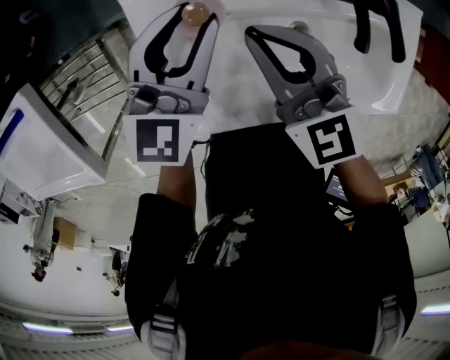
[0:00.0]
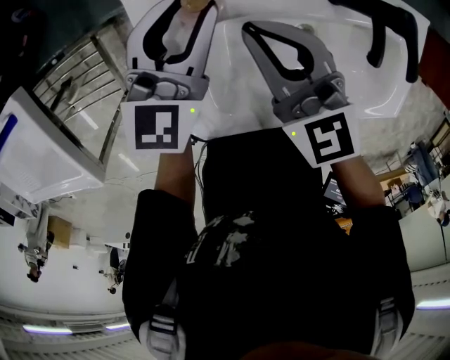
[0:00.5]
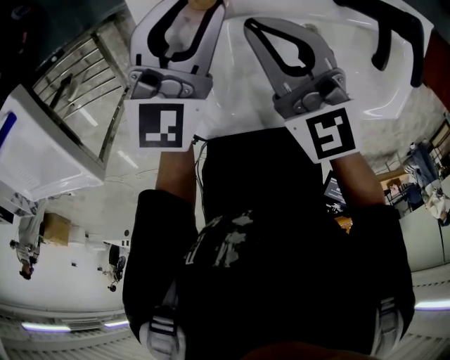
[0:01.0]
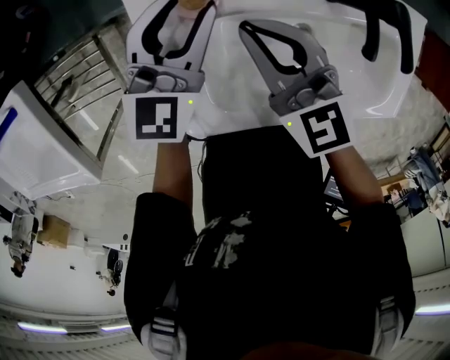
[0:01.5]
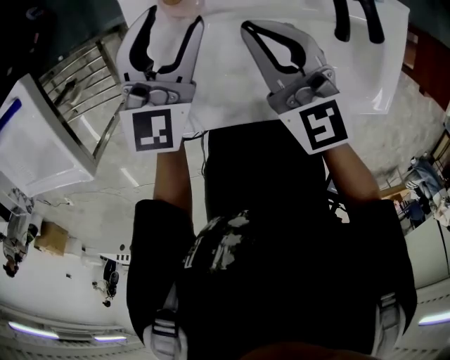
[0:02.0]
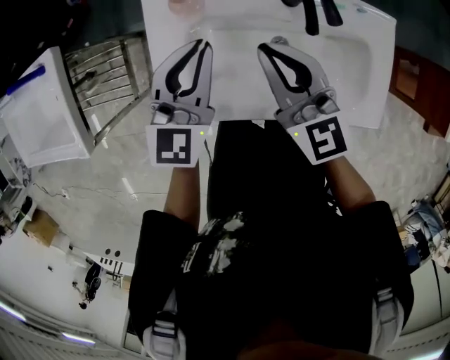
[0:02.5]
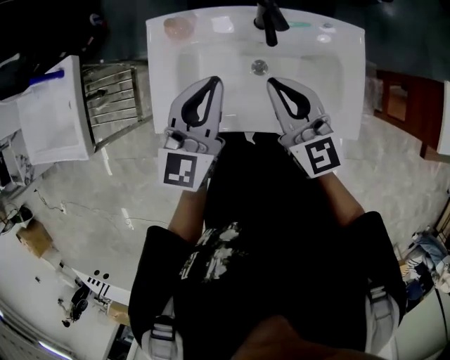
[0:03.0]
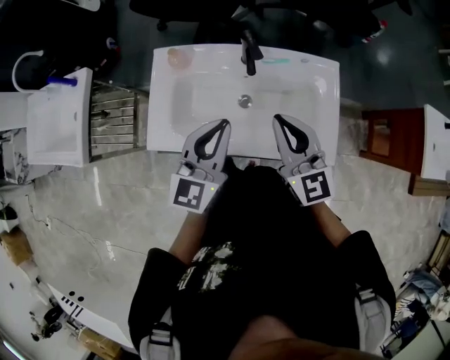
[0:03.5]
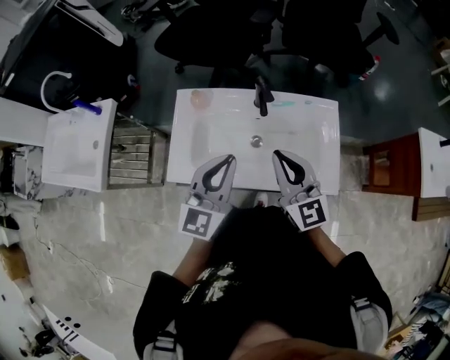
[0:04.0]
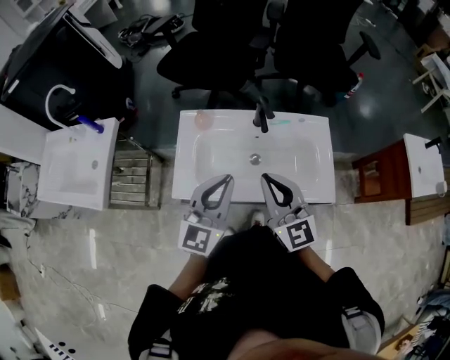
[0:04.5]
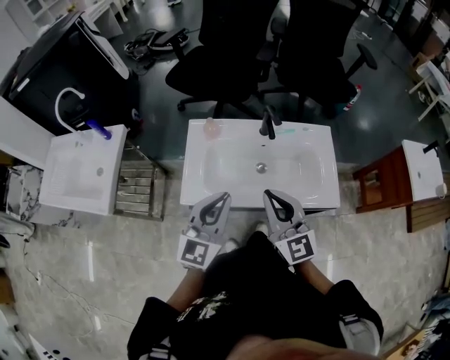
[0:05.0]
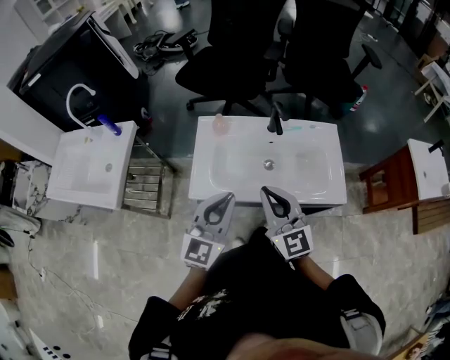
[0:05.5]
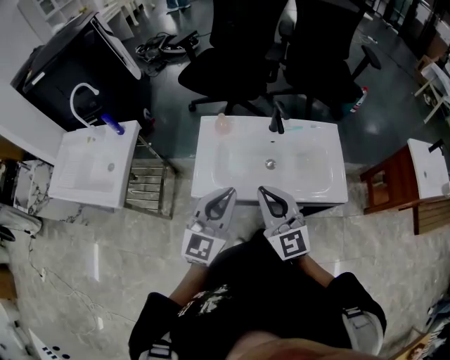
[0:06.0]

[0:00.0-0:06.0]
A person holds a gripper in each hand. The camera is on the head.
0:00.0 to 0:02.0: The left gripper opens its fingers.
0:02.0 to 0:04.0: Both grippers move backward, upward and to the right, roughly 40 cm. The left gripper closes up.
0:04.0 to 0:06.0: Both grippers move backward and to the left, some 20 cm.

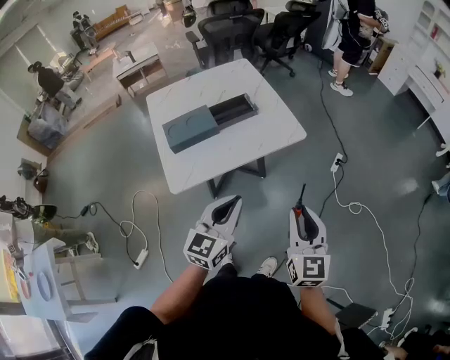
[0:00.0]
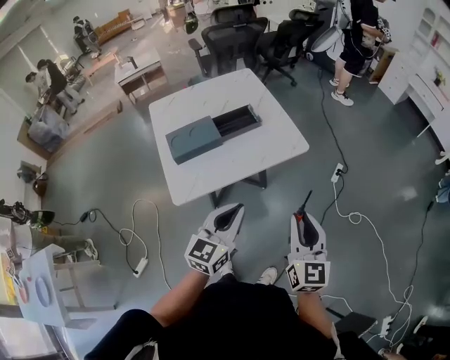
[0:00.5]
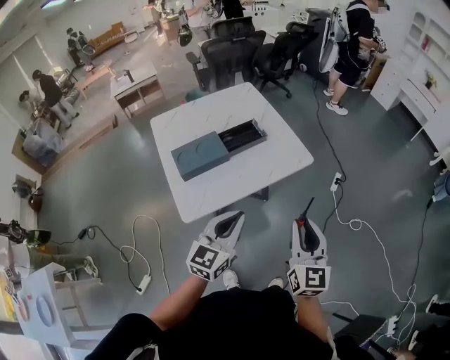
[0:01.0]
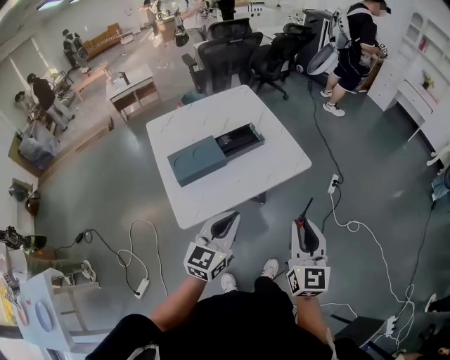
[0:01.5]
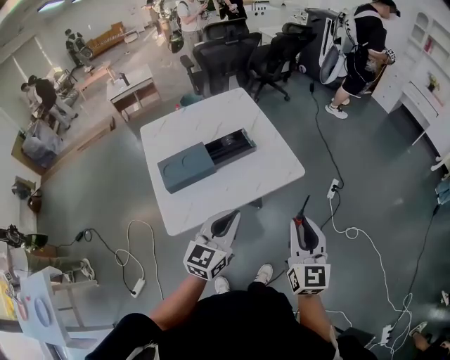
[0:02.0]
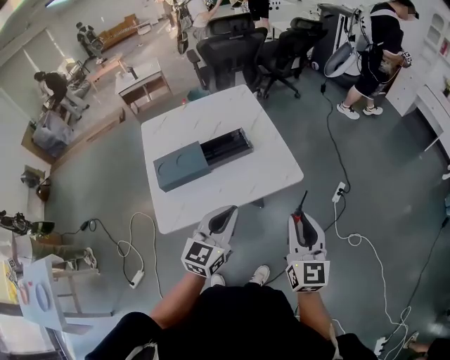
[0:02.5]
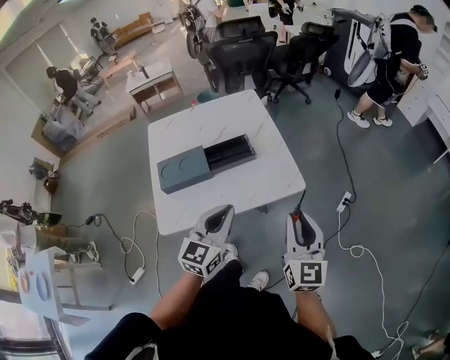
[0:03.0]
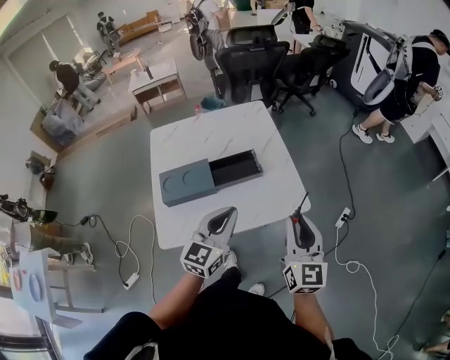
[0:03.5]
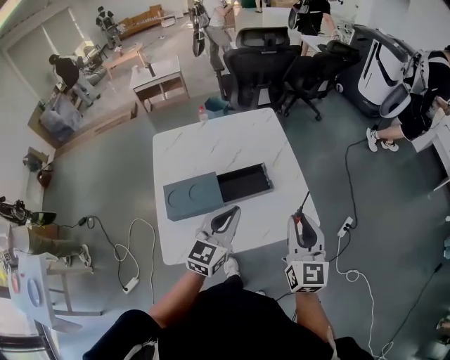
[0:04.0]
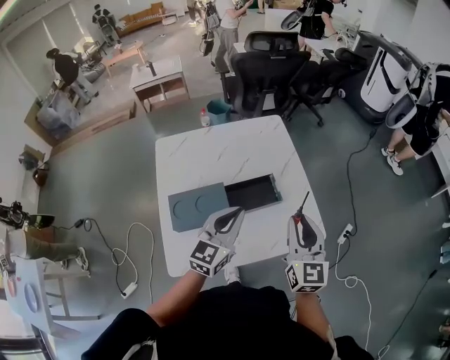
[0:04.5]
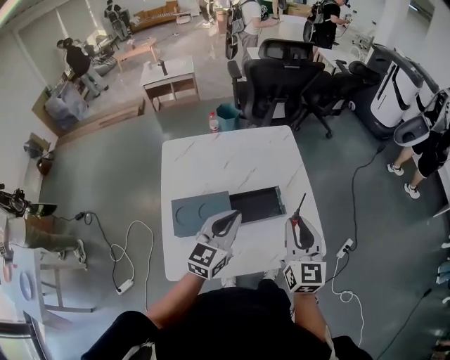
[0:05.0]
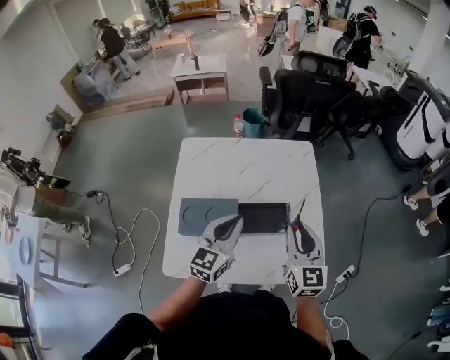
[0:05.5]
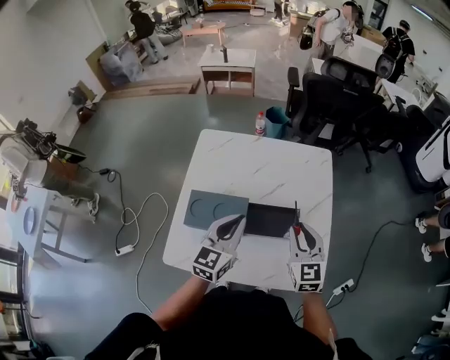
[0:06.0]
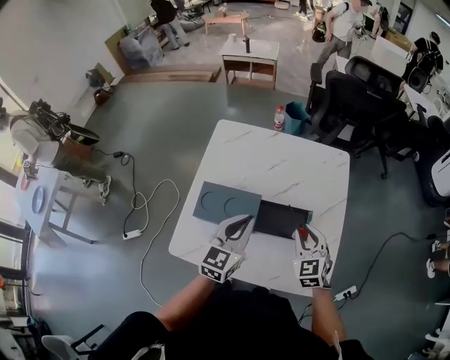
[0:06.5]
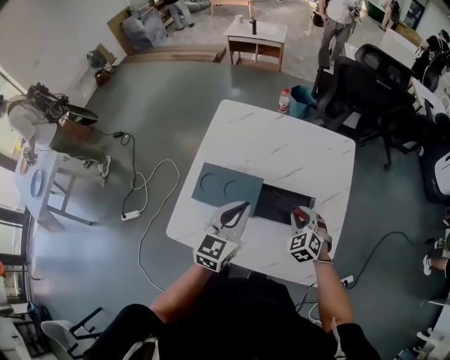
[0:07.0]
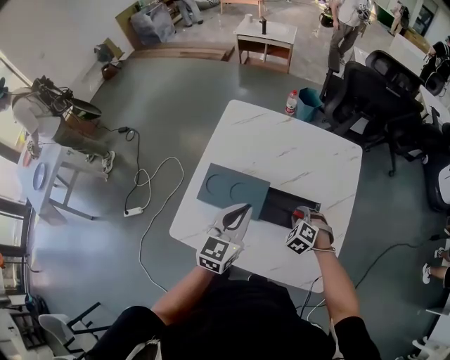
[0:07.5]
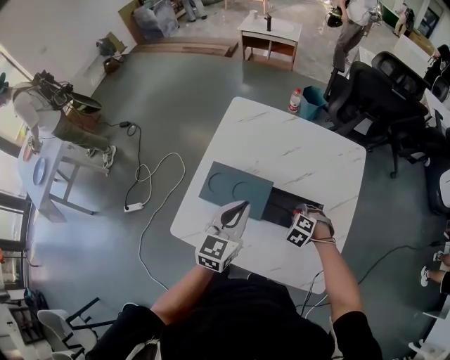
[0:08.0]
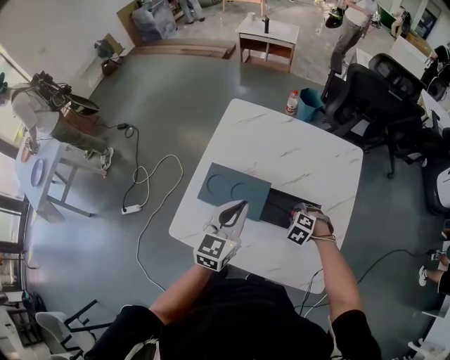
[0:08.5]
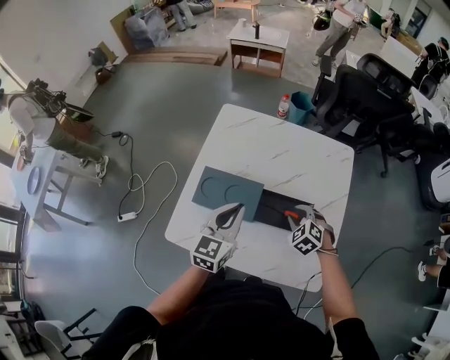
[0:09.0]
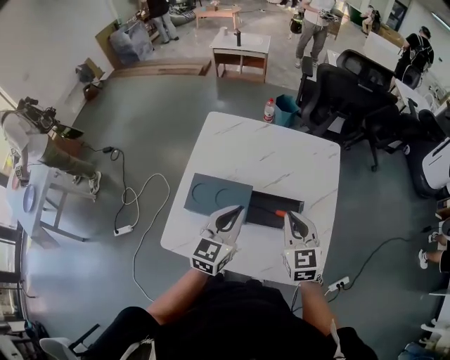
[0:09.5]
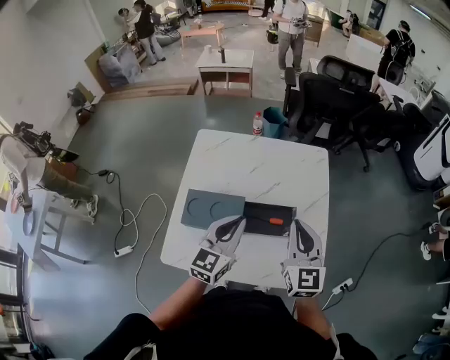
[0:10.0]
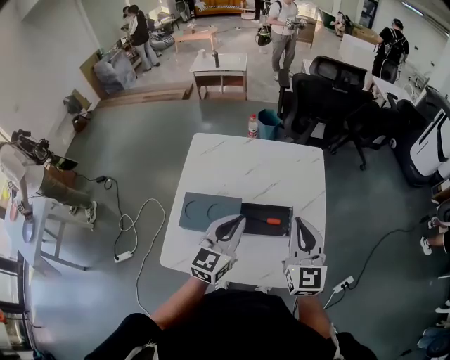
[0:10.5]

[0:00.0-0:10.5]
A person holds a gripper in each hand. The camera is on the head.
0:00.0 to 0:02.0: The two grippers go about 10 cm forward.
0:02.0 to 0:04.0: The two grippers go approximately 20 cm forward.
0:04.0 to 0:06.5: The right gripper moves roughly 25 cm, and swivels some 50 degrees. The left gripper changes place by roughly 15 cm, and rotates approximately 30 degrees.
0:06.5 to 0:08.5: The left gripper shifts by roughly 5 cm, while the right gripper moves downward, approximately 15 cm, and angles its fingers downward, by about 40 degrees.
0:08.5 to 0:10.5: The right gripper heads upward, covering roughly 30 cm, tips its fingers upward by some 70 degrees, and closes. The left gripper ends up about 10 cm from where it was.

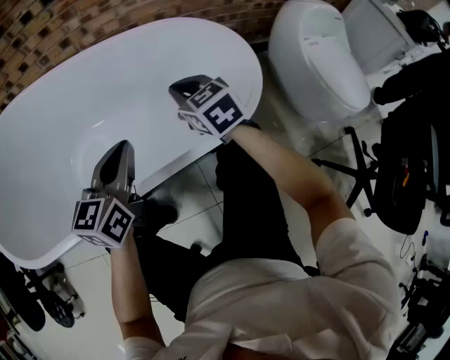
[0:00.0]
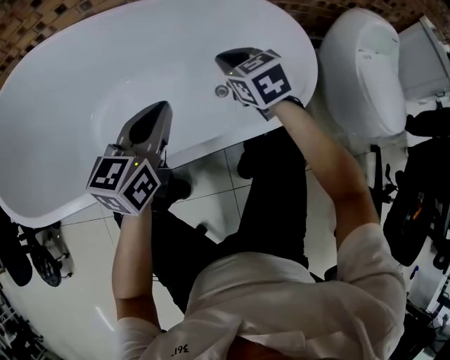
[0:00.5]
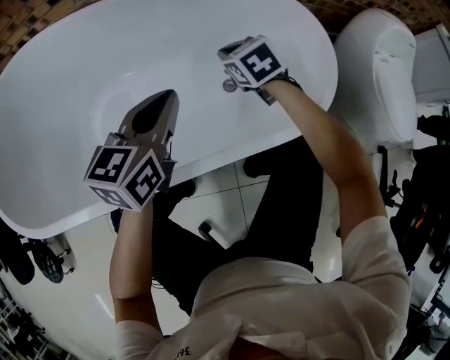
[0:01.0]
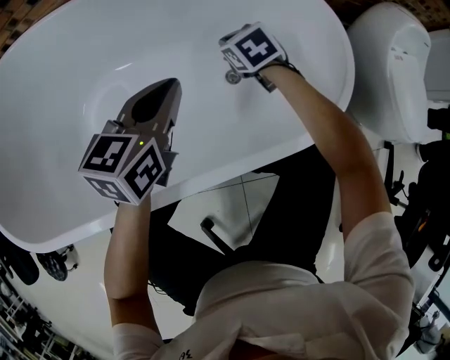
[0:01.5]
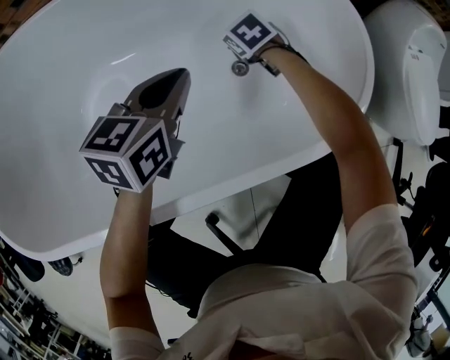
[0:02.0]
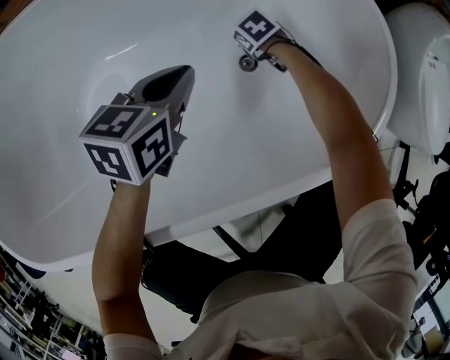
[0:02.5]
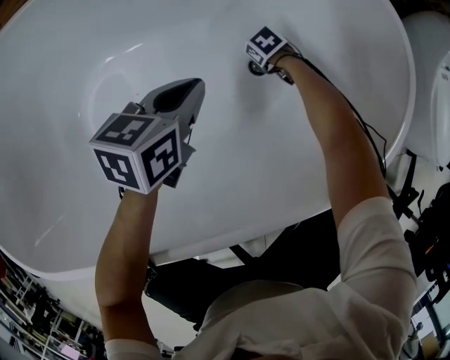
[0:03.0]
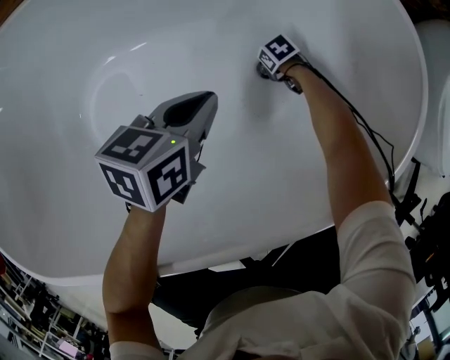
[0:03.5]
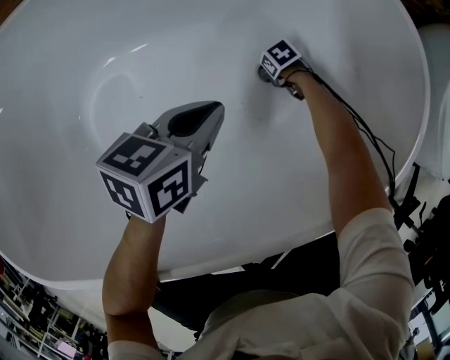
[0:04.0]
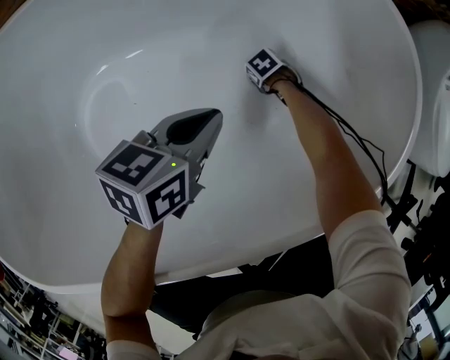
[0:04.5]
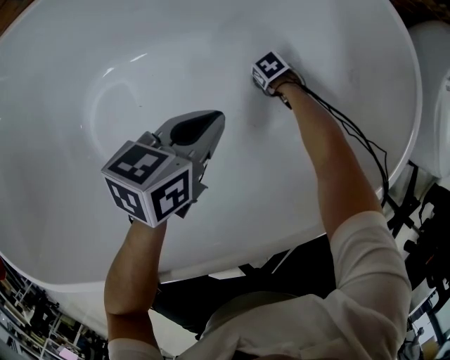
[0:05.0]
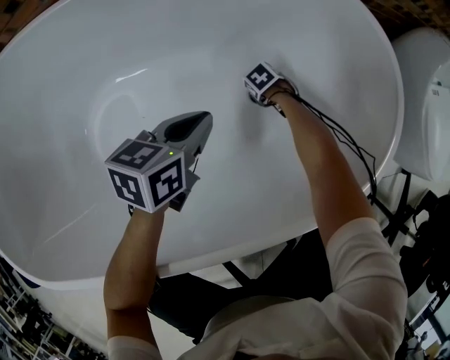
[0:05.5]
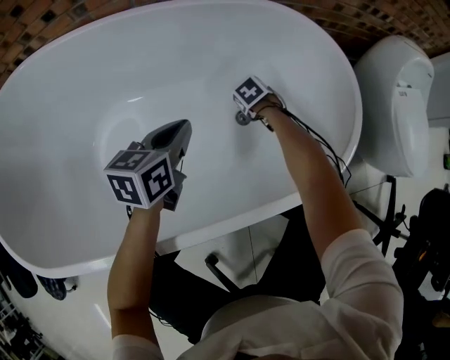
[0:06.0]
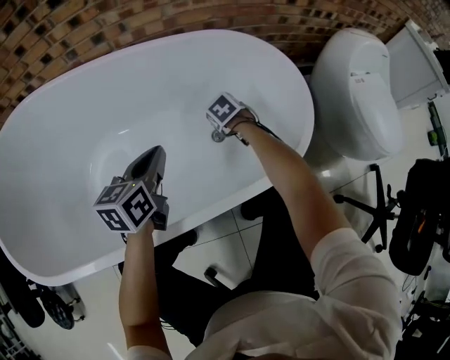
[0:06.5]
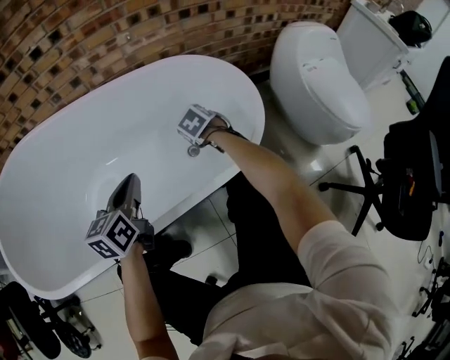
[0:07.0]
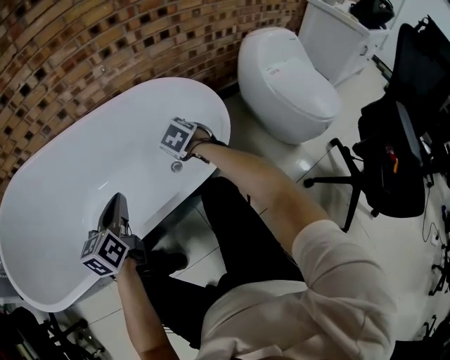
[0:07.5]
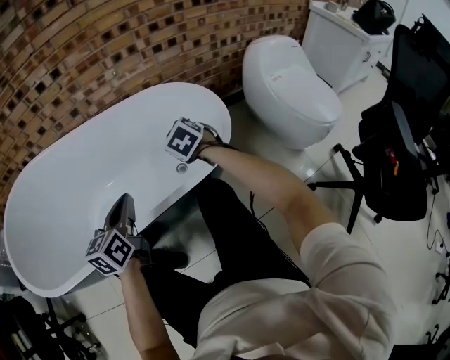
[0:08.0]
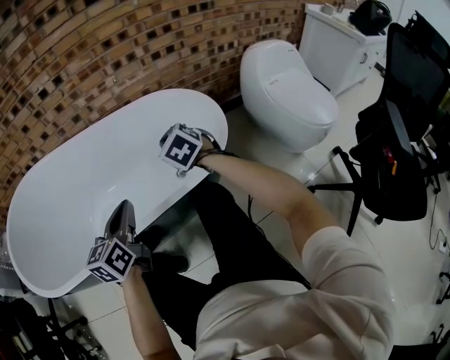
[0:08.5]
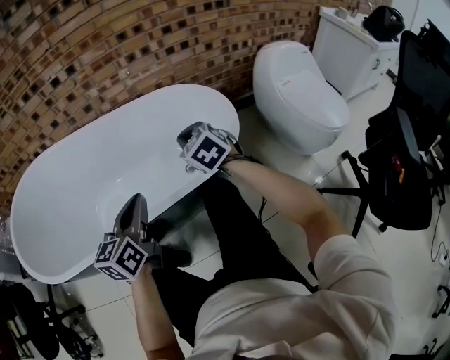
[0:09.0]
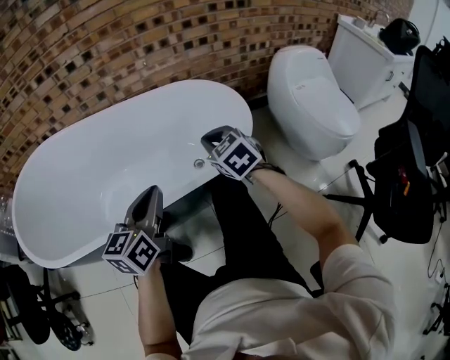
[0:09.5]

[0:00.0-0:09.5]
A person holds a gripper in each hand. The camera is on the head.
0:00.0 to 0:02.0: The right gripper shifts about 30 cm downward and forward, and angles its fingers downward, by approximately 30 degrees. Meanwhile the left gripper travels forward and downward by approximately 20 cm.
0:02.0 to 0:04.0: The right gripper heads downward, covering some 25 cm, and turns by roughly 30 degrees, while the left gripper heads downward, covering approximately 10 cm.
0:04.0 to 0:05.5: The grippers stay close to where they were, moving slightly.
0:05.5 to 0:07.5: The left gripper shifts roughly 20 cm upward, and changes its angle by about 30 degrees, while the right gripper goes approximately 40 cm upward, and tilts its fingers some 30 degrees upward.
0:07.5 to 0:09.5: The right gripper goes roughly 20 cm backward and upward. The left gripper moves backward, upward and to the right, roughly 15 cm.

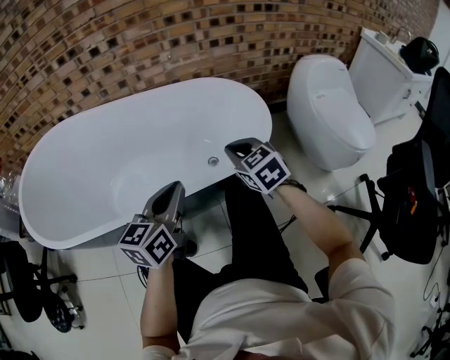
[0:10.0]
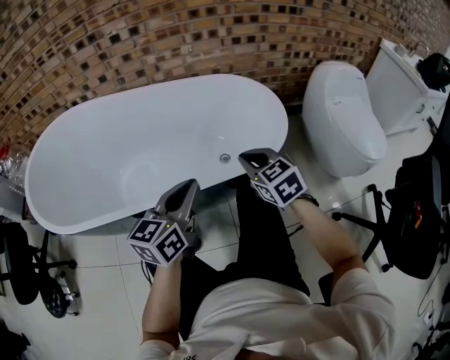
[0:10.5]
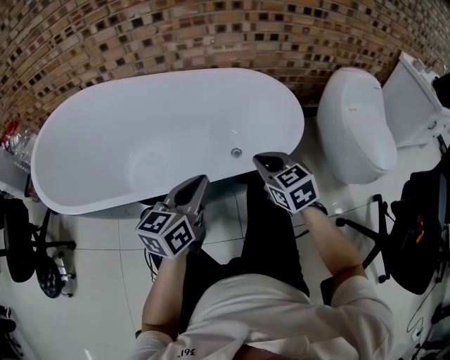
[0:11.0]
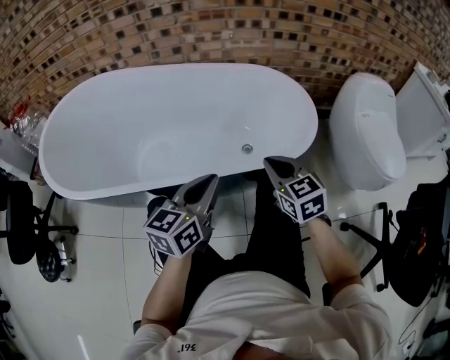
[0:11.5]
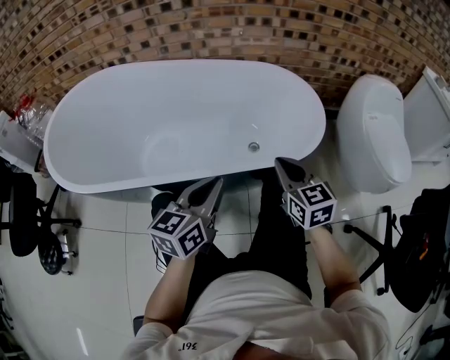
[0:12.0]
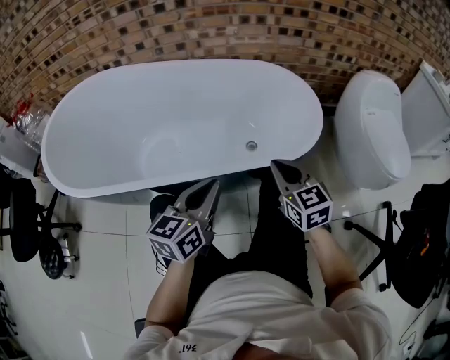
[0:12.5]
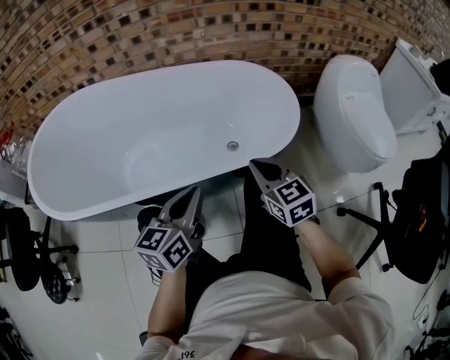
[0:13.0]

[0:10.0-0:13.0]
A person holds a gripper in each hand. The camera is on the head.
0:10.0 to 0:11.5: The right gripper heads backward, covering about 5 cm.
0:11.5 to 0:13.0: There are only small adjustments of the grippers.
